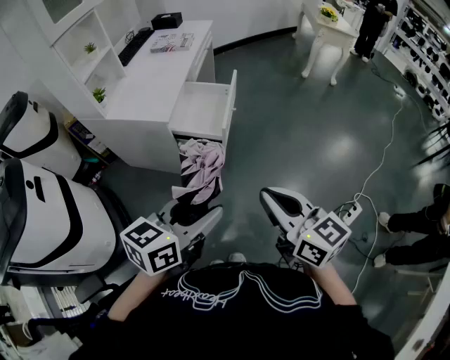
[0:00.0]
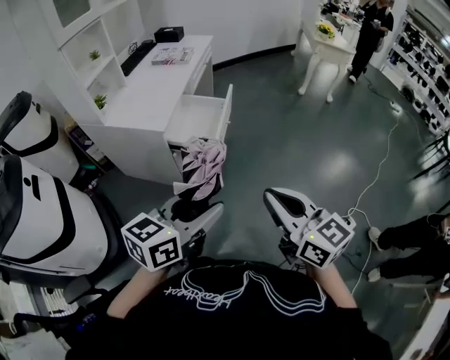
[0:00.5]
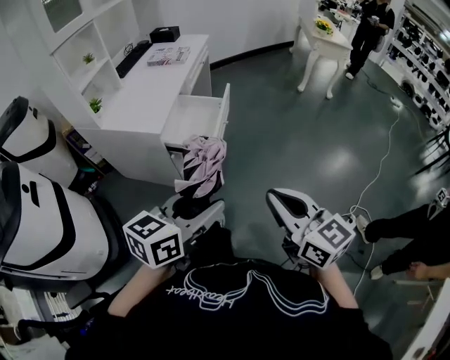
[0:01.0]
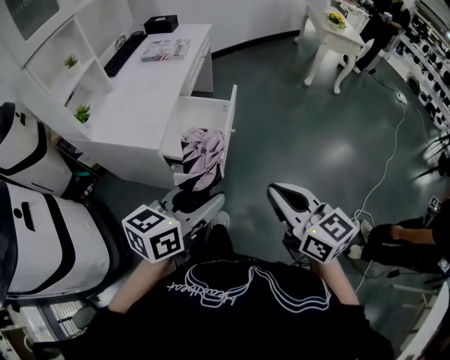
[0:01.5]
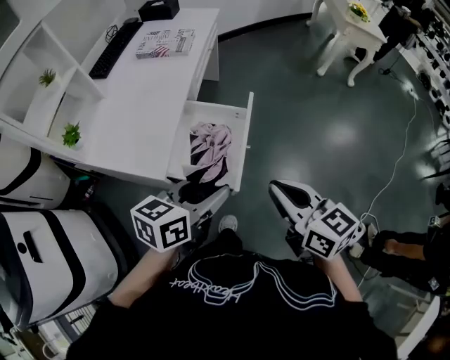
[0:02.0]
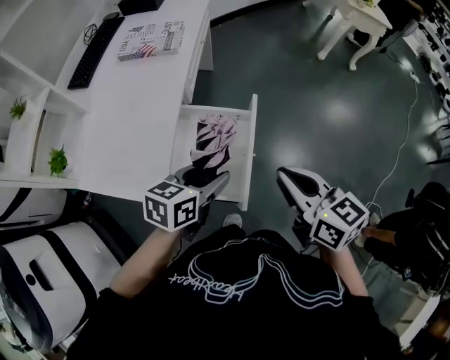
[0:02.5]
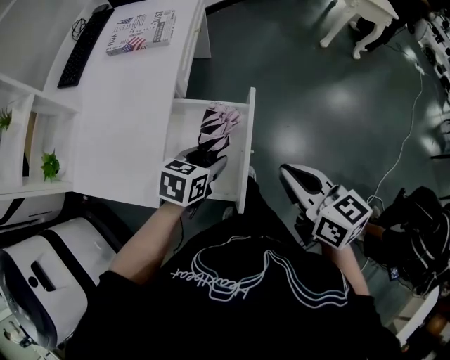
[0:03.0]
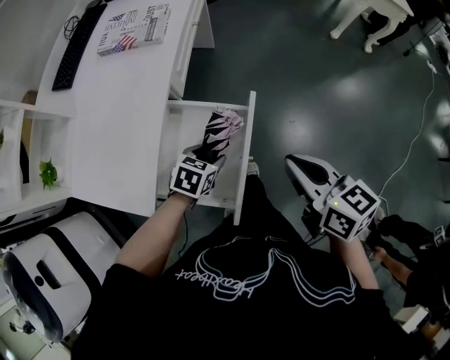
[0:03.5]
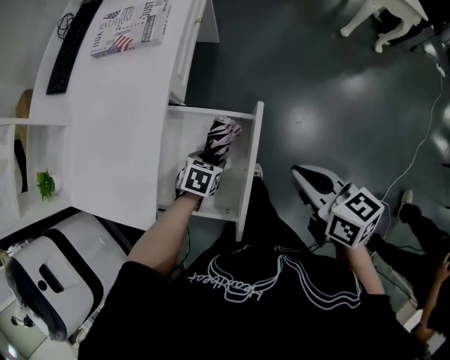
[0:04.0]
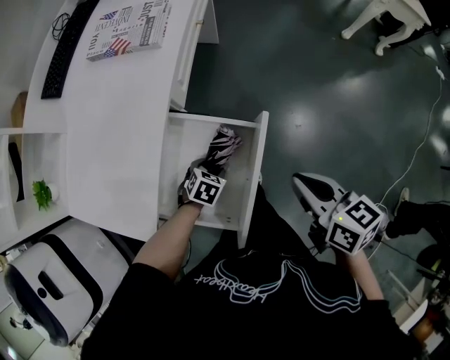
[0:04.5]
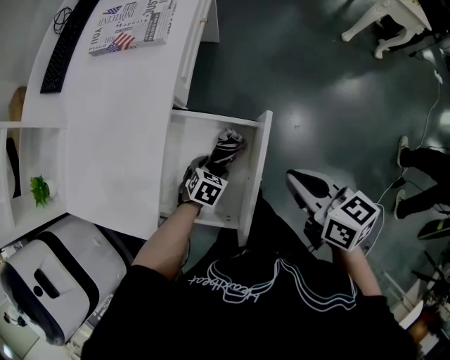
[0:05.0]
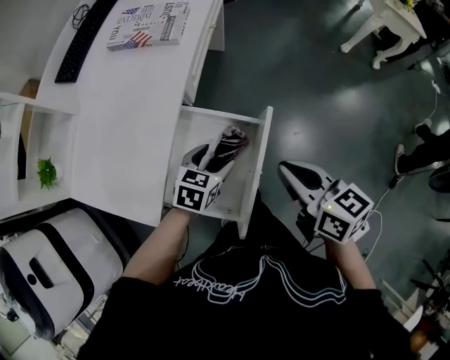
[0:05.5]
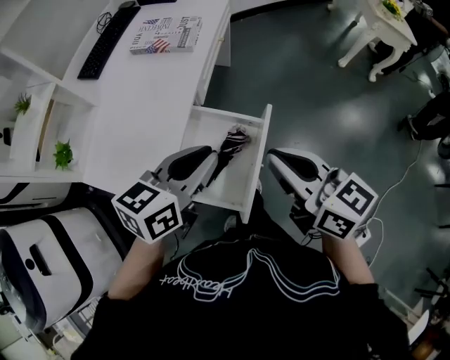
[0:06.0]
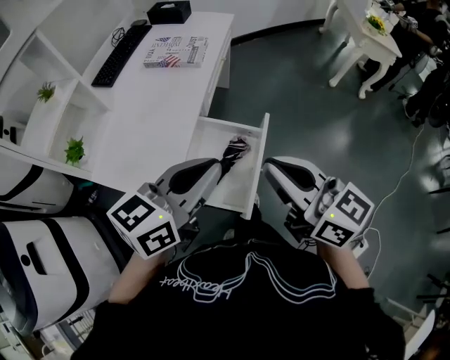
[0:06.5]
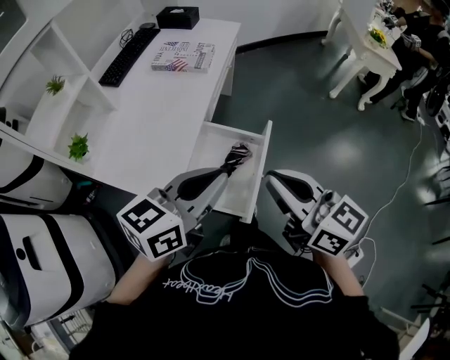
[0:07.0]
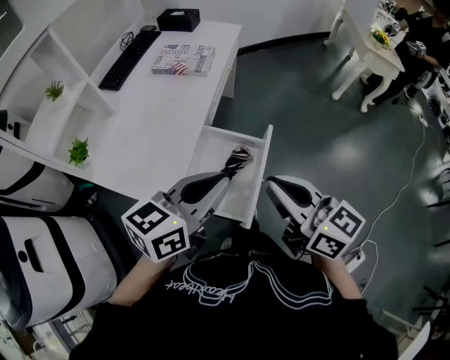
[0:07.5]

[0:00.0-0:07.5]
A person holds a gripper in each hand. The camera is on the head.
0:00.0 to 0:02.0: Both grippers travel together forward, about 35 cm.
0:02.0 to 0:04.0: The right gripper shifts approximately 25 cm forward and downward. The left gripper is displaced downward and forward by about 40 cm, and tilts its fingers some 40 degrees downward.
0:04.0 to 0:05.5: The right gripper is displaced to the left by roughly 5 cm, while the left gripper goes about 10 cm upward, and swivels about 20 degrees.
0:05.5 to 0:07.5: The left gripper heads upward and backward, covering roughly 30 cm, points its fingers about 30 degrees further upward, and closes. Meanwhile the right gripper heads upward, backward and to the left, covering roughly 20 cm, and turns by about 20 degrees.

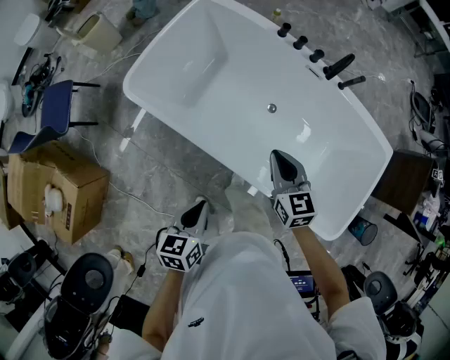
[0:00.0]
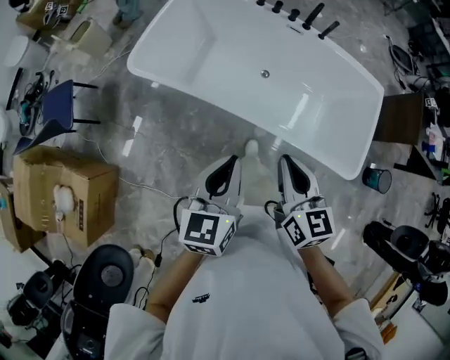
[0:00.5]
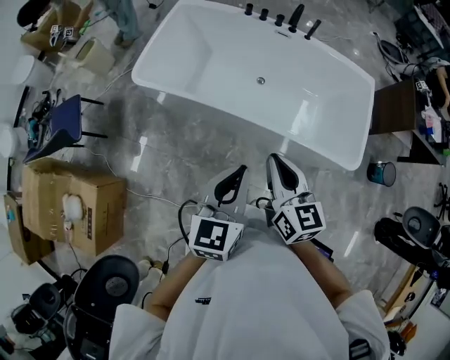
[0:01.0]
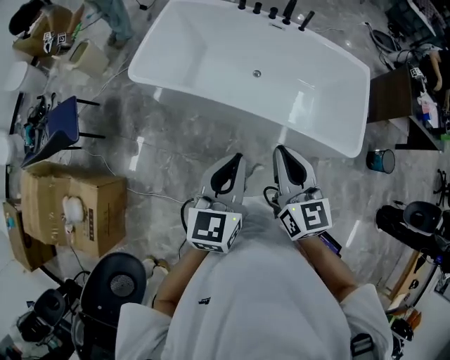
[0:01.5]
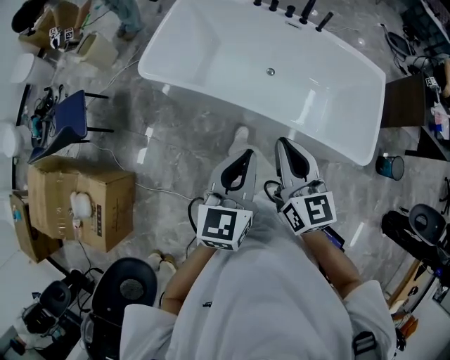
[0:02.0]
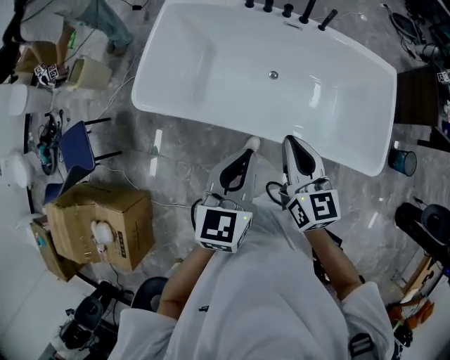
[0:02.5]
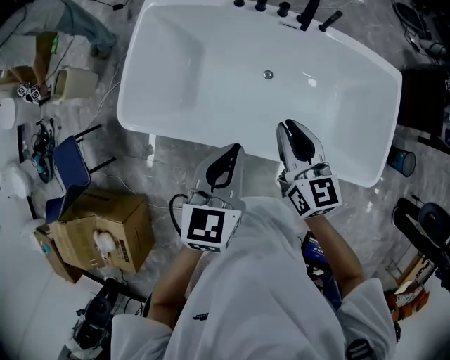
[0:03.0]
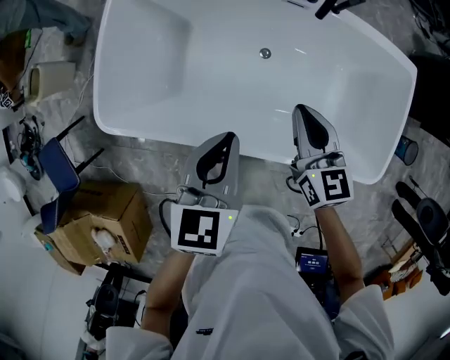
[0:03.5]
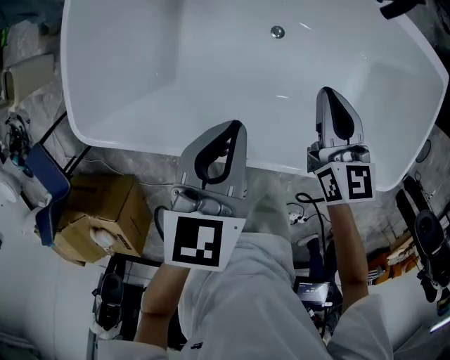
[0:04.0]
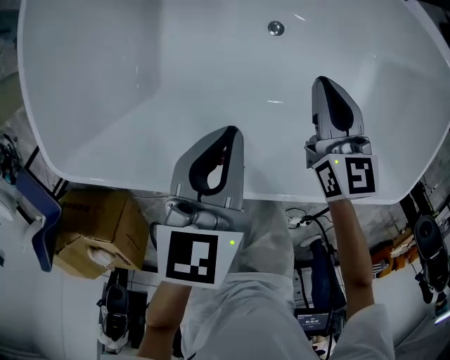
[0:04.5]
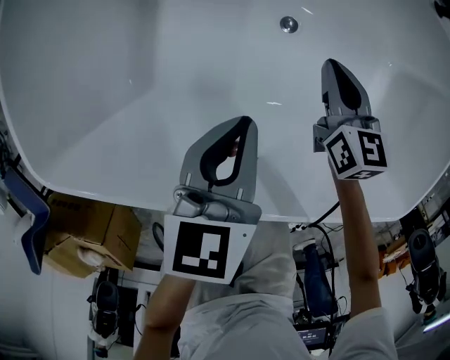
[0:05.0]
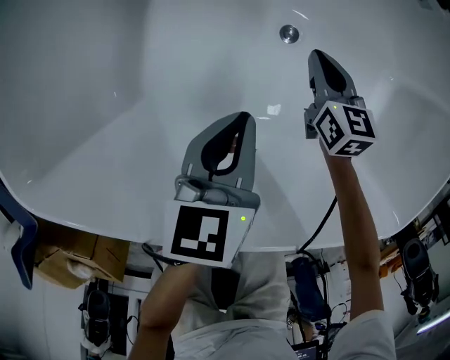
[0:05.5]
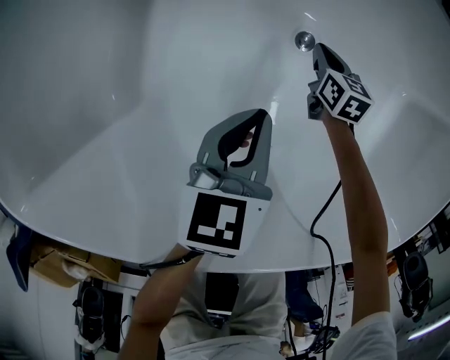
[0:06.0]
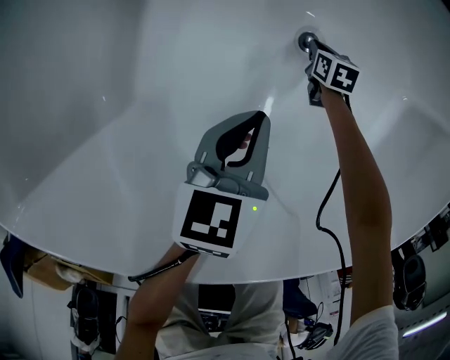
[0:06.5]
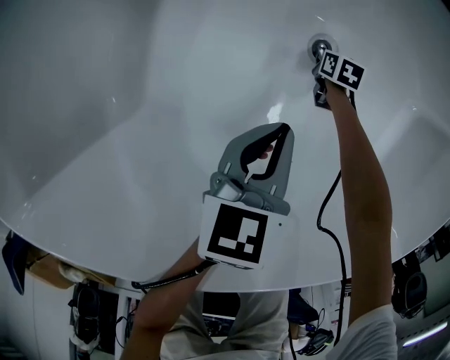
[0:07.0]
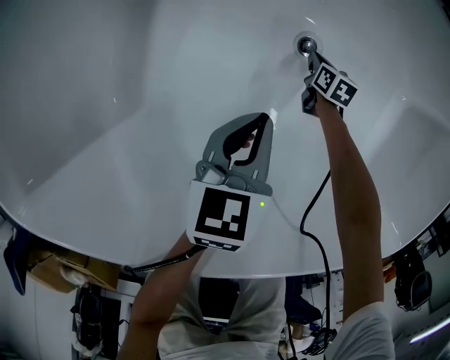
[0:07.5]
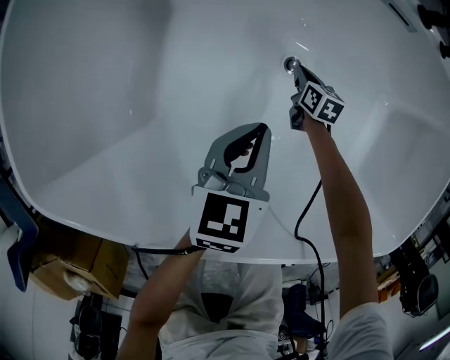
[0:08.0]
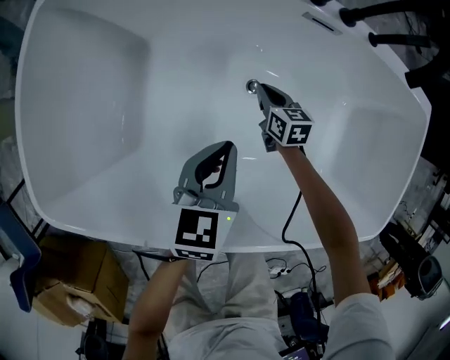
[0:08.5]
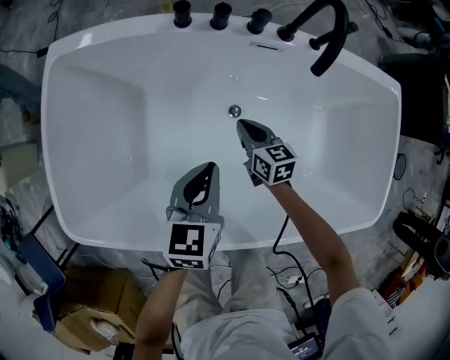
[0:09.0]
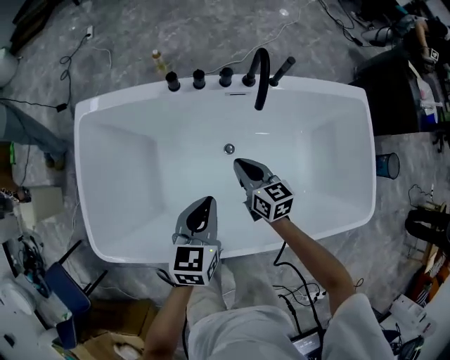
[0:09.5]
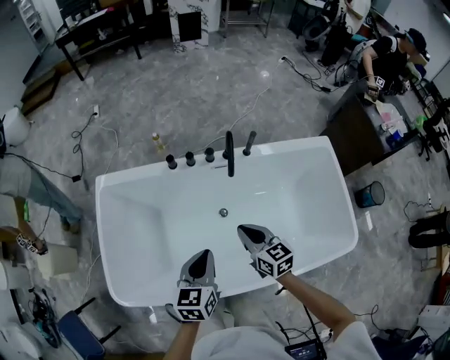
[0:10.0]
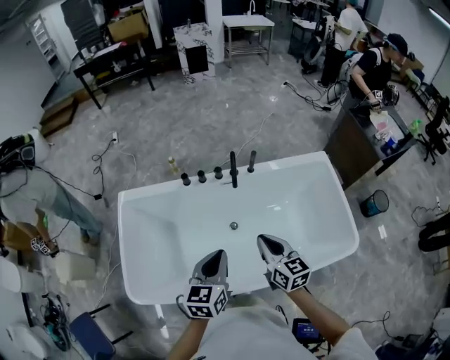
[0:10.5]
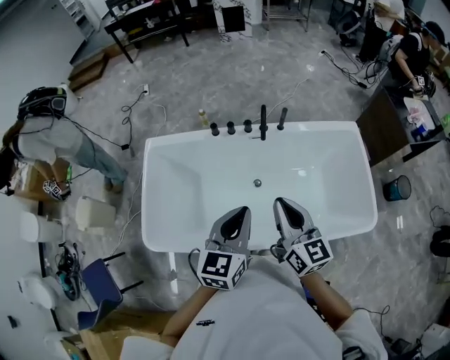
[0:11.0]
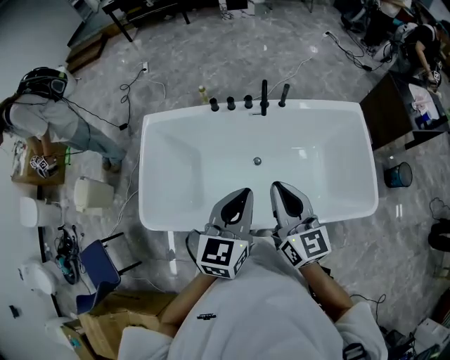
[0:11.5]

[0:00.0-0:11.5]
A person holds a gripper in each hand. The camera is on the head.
0:00.0 to 0:02.0: The right gripper moves backward and upward, about 35 cm, and swivels about 20 degrees. The left gripper travels upward and backward by roughly 25 cm, and swivels approximately 30 degrees.
0:02.0 to 0:04.0: Both grippers are carried forward, approximately 50 cm. Both grippers move downward, some 30 cm. The right gripper changes its angle by about 20 degrees. Meanwhile the left gripper swivels about 30 degrees.
0:04.0 to 0:06.0: Both grippers move downward, approximately 50 cm. The right gripper changes its angle by about 20 degrees.
0:06.0 to 0:07.5: The right gripper heads downward, covering roughly 10 cm.
0:07.5 to 0:09.5: Both grippers move upward, about 50 cm. The right gripper tips its fingers upward by approximately 30 degrees.
0:09.5 to 0:11.5: The two grippers go approximately 40 cm upward and backward. The right gripper turns by approximately 30 degrees.

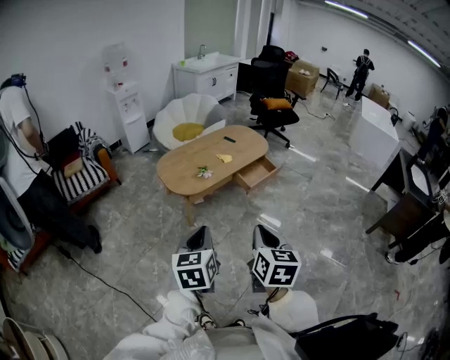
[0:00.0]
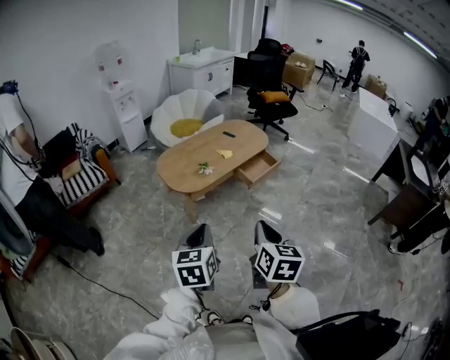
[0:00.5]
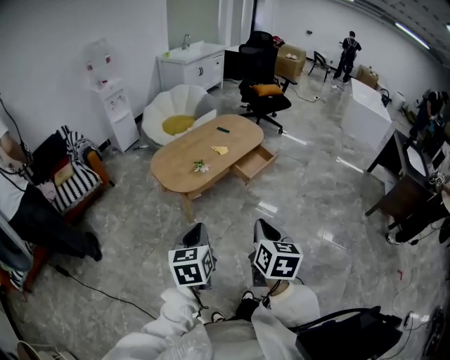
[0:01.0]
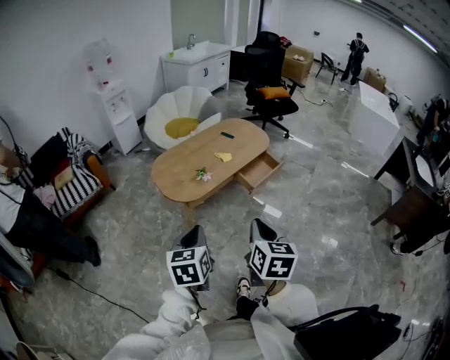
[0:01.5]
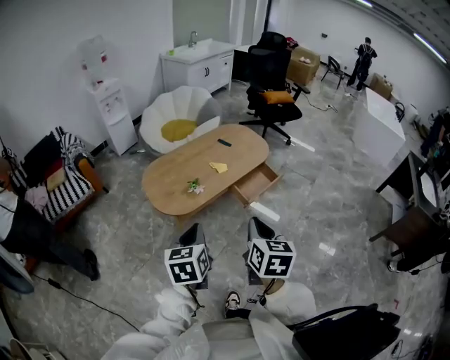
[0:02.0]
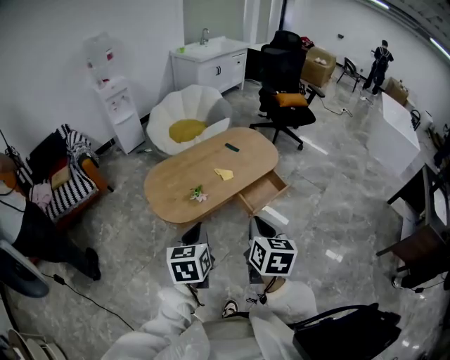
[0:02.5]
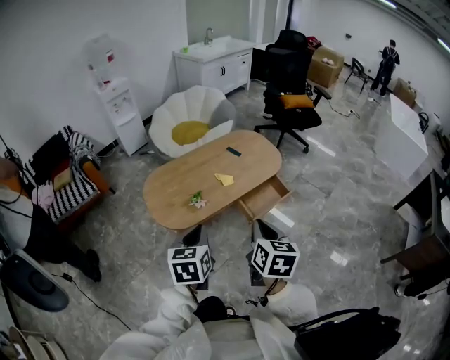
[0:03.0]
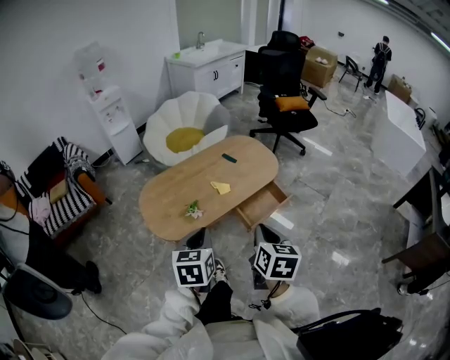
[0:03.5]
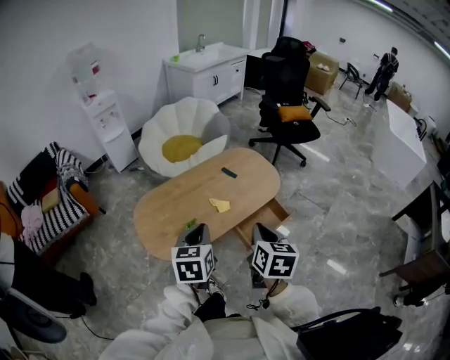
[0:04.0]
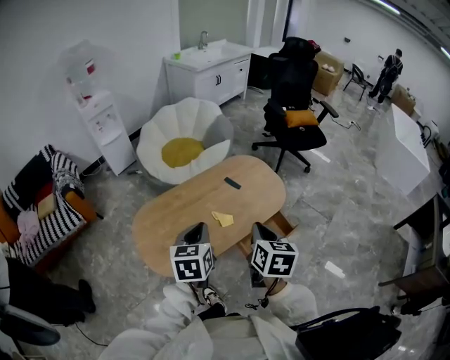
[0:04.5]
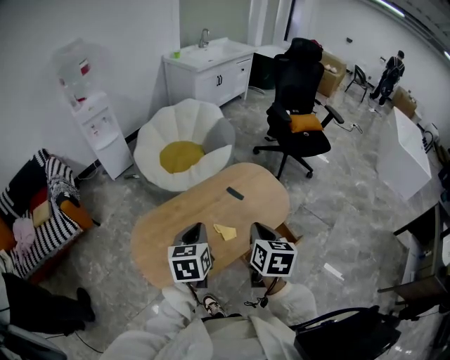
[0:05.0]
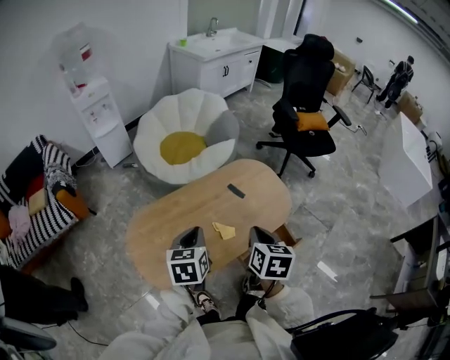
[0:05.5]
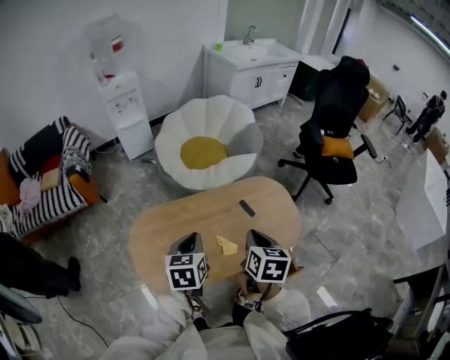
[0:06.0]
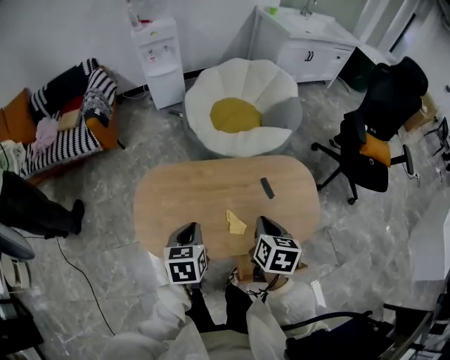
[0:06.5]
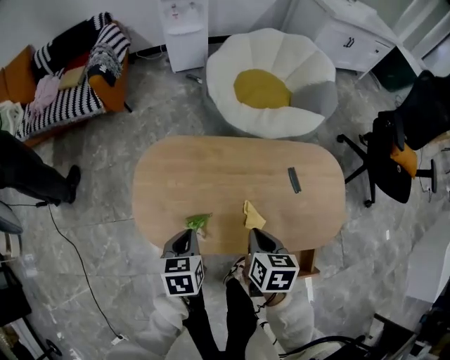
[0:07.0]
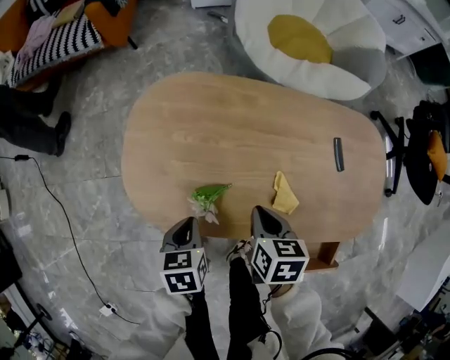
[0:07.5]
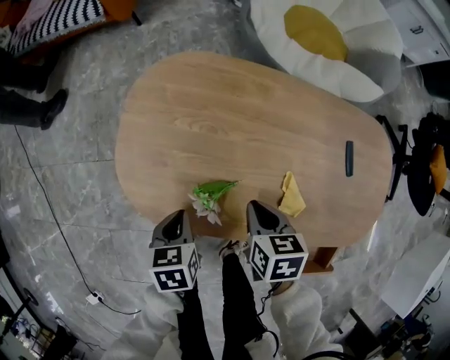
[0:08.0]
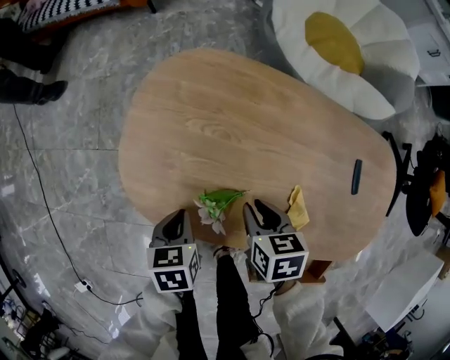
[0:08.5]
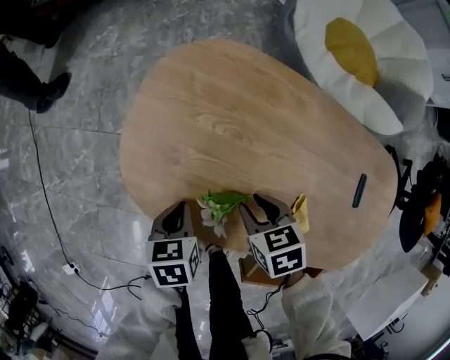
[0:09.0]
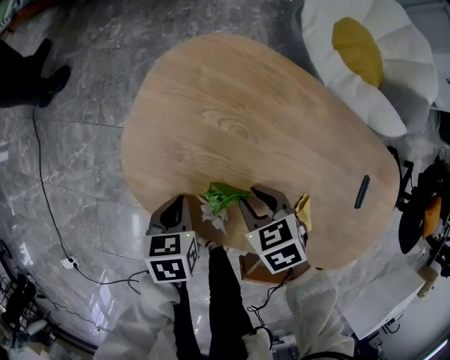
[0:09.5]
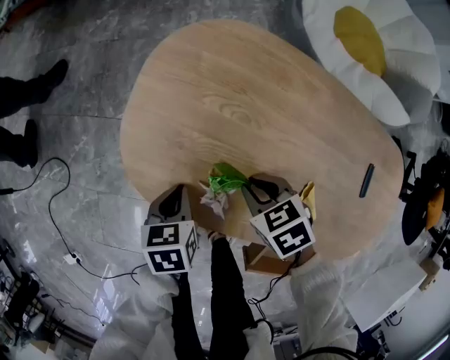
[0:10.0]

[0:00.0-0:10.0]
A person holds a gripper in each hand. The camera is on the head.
0:00.0 to 0:02.0: Both grippers move forward, about 25 cm.
0:02.0 to 0:04.0: The two grippers go about 30 cm forward.
0:04.0 to 0:06.0: The two grippers go about 25 cm forward.
0:06.0 to 0:08.0: The two grippers go about 40 cm downward. The right gripper swivels about 50 degrees; the left gripper rotates about 40 degrees.
0:08.0 to 0:10.0: The left gripper ends up some 5 cm from where it was. The right gripper ends up some 10 cm from where it was, and rotates approximately 50 degrees.
